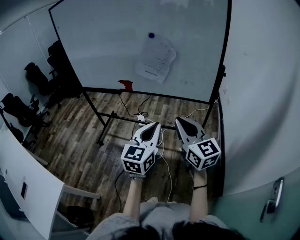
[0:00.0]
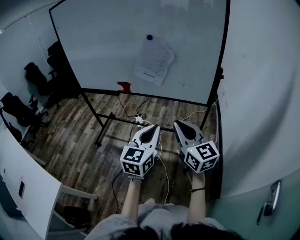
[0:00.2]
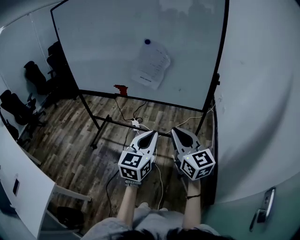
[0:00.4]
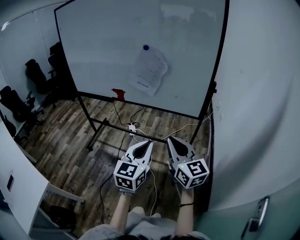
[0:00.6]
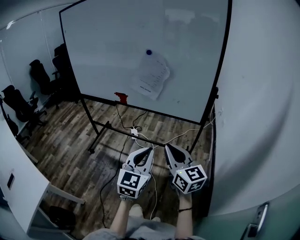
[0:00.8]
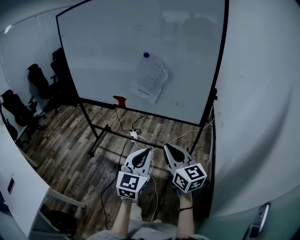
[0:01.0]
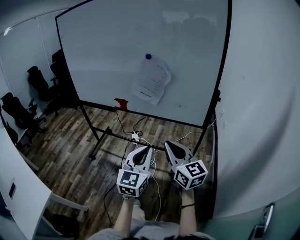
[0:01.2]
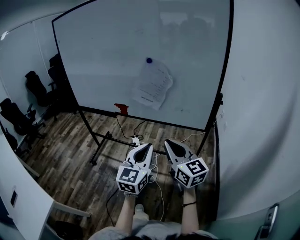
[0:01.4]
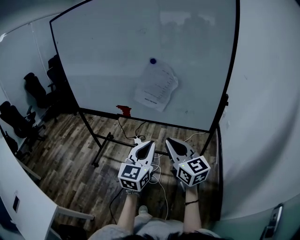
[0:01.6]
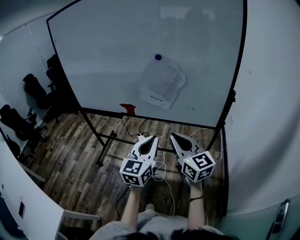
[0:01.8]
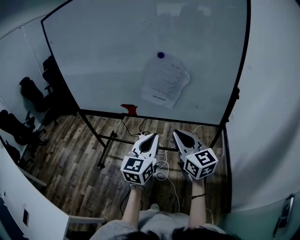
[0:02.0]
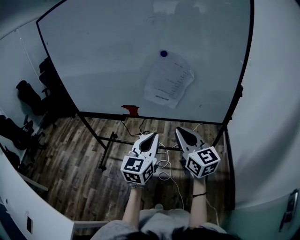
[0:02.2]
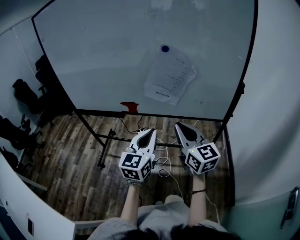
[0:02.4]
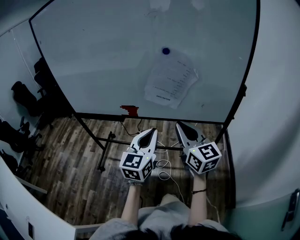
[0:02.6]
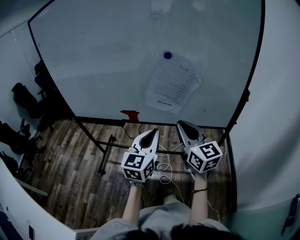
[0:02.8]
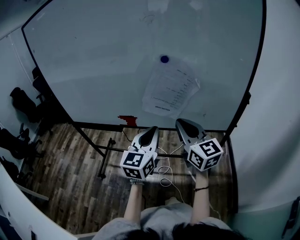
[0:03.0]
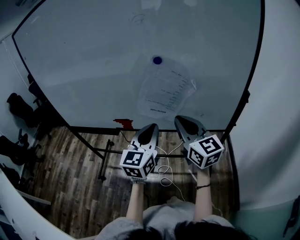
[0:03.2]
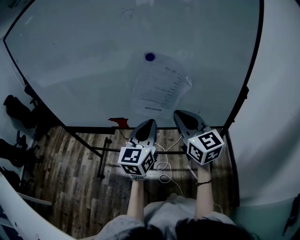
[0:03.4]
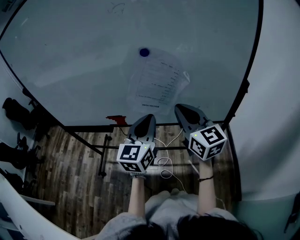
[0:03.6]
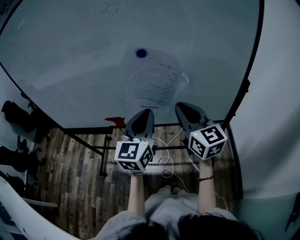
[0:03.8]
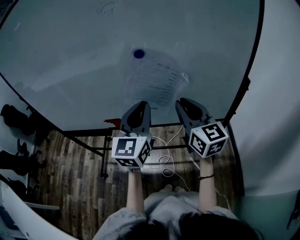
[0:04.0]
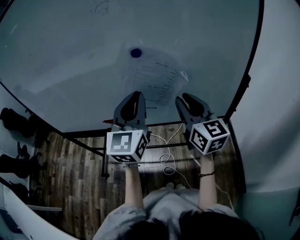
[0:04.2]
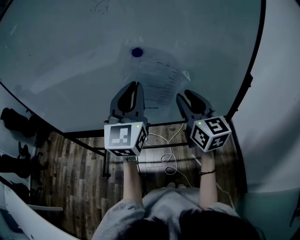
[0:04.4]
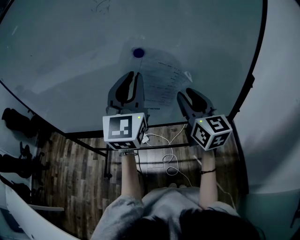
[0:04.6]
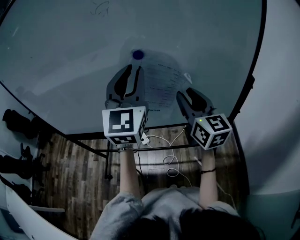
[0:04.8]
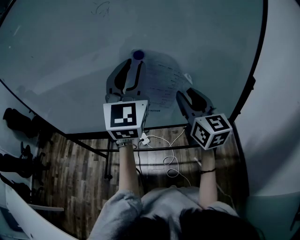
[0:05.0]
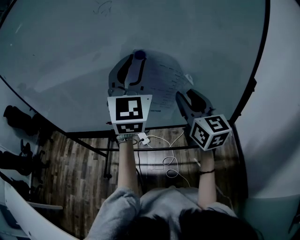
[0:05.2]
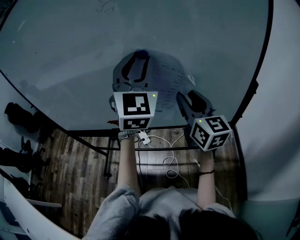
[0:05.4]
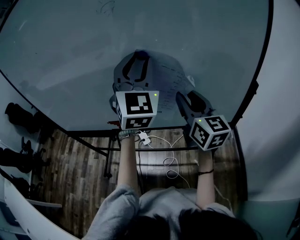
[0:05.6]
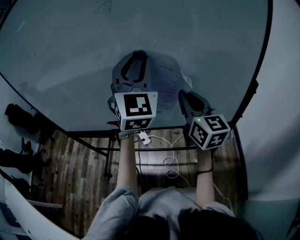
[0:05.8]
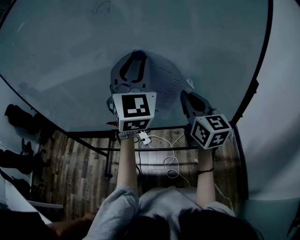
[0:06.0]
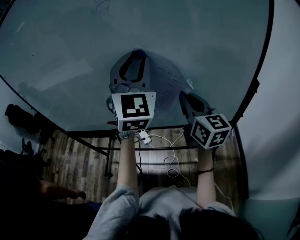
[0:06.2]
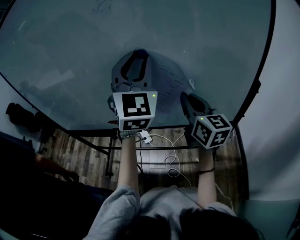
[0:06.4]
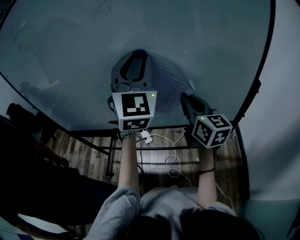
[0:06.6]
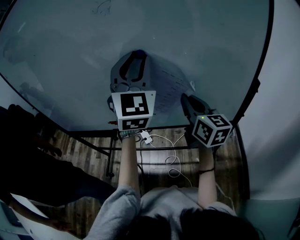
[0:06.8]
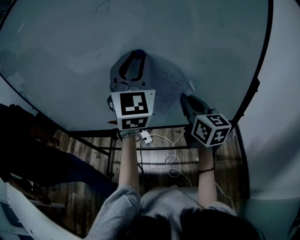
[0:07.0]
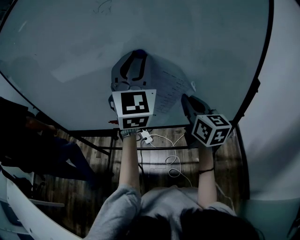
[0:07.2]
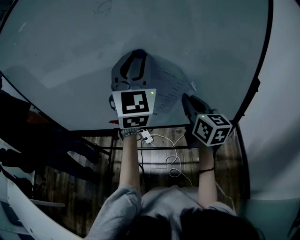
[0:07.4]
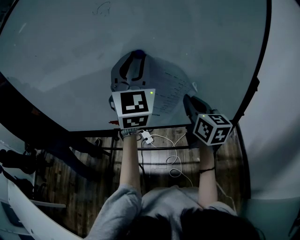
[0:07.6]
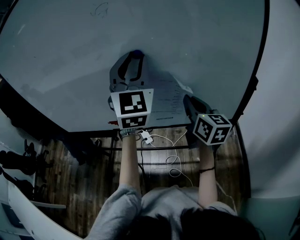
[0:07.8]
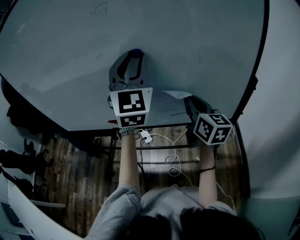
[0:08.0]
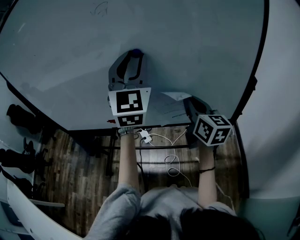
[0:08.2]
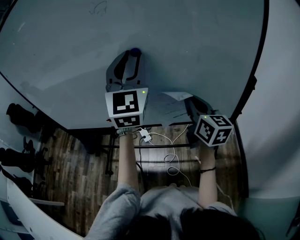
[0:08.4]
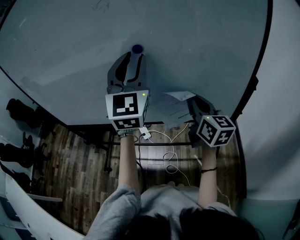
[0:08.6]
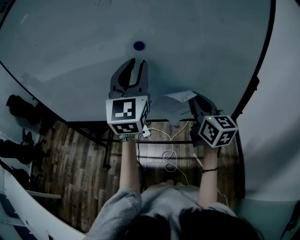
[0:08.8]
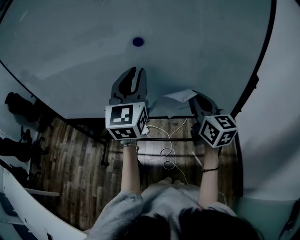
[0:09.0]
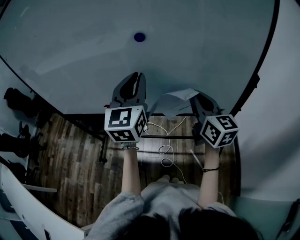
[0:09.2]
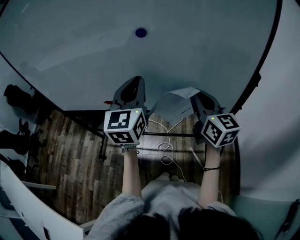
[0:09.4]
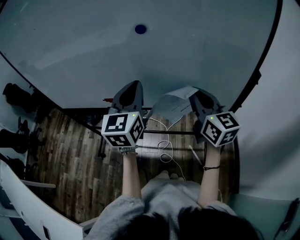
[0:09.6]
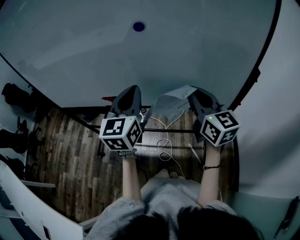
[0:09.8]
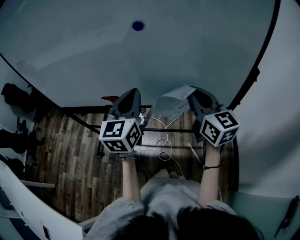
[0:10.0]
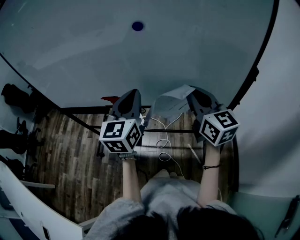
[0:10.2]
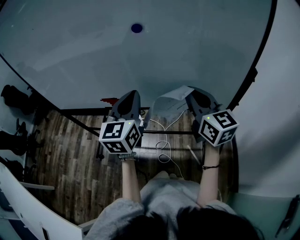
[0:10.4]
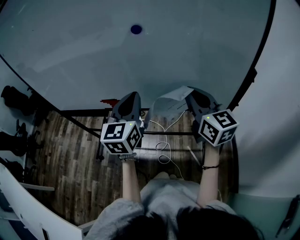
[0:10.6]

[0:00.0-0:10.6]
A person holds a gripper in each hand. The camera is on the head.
0:00.0 to 0:01.6: Both grippers travel together forward, roughly 10 cm.
0:01.6 to 0:03.0: The left gripper is displaced forward and to the left by about 20 cm. Meanwhile the right gripper moves forward, roughly 20 cm.
0:03.0 to 0:04.6: The left gripper moves forward and upward, roughly 20 cm, and turns by approximately 20 degrees, while the right gripper moves forward and to the right, roughly 15 cm, and opens up.
0:04.6 to 0:06.0: The left gripper moves roughly 5 cm, and changes its angle by some 20 degrees; the right gripper closes up.
0:06.0 to 0:07.6: The grippers make only small movements.
0:07.6 to 0:09.0: The left gripper shifts approximately 5 cm downward, and swivels approximately 20 degrees.
0:09.0 to 0:10.6: The left gripper is displaced downward by some 10 cm.

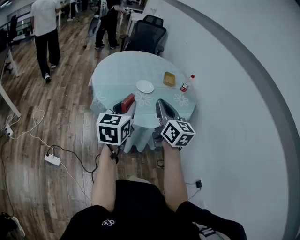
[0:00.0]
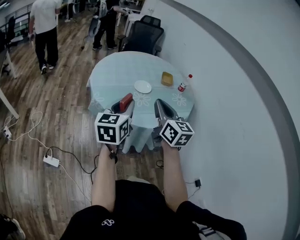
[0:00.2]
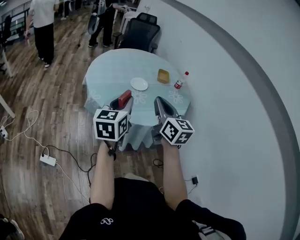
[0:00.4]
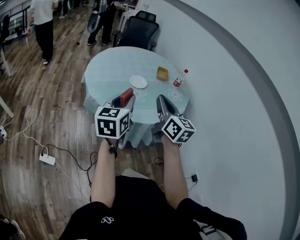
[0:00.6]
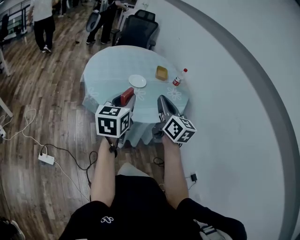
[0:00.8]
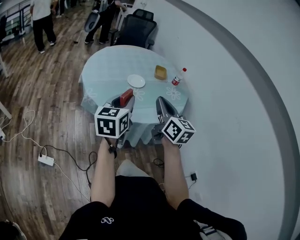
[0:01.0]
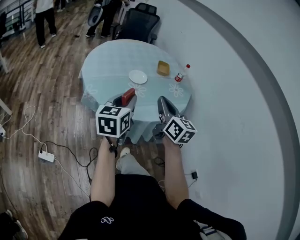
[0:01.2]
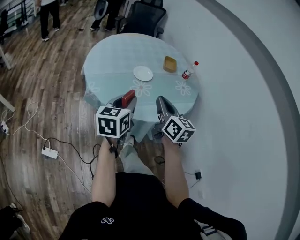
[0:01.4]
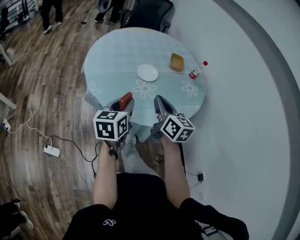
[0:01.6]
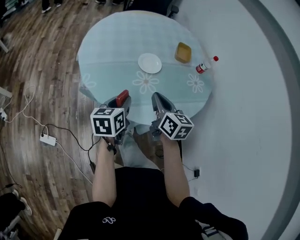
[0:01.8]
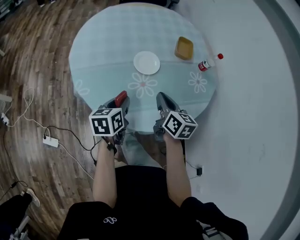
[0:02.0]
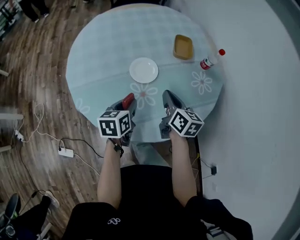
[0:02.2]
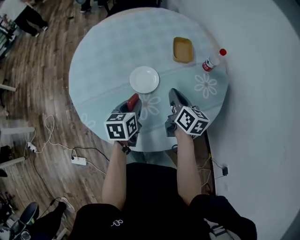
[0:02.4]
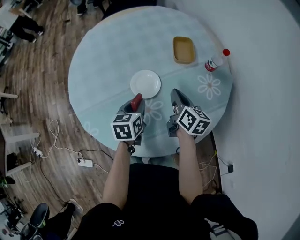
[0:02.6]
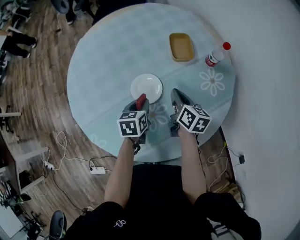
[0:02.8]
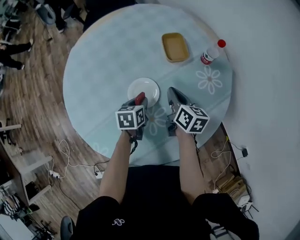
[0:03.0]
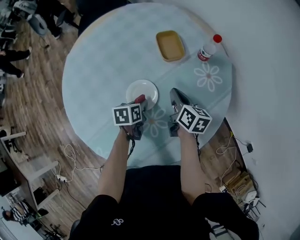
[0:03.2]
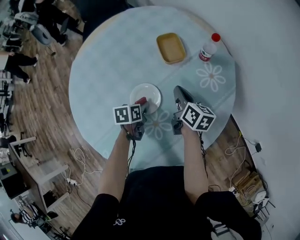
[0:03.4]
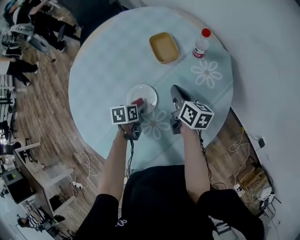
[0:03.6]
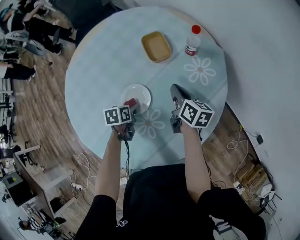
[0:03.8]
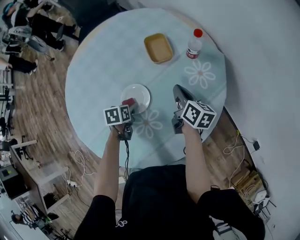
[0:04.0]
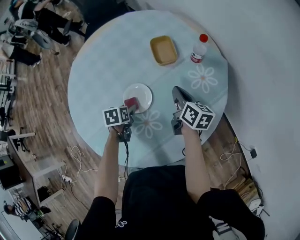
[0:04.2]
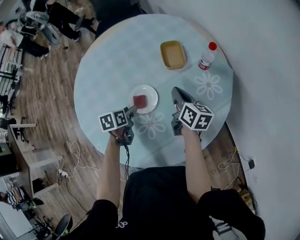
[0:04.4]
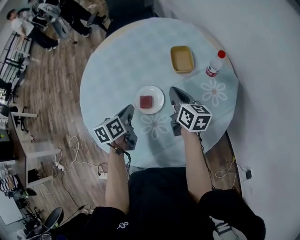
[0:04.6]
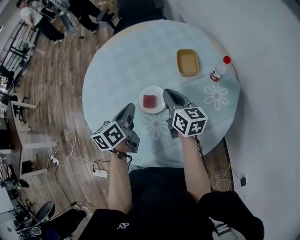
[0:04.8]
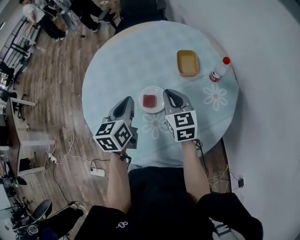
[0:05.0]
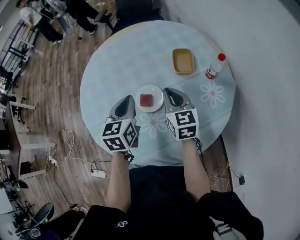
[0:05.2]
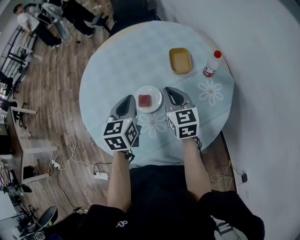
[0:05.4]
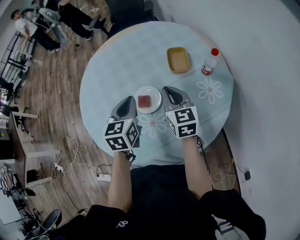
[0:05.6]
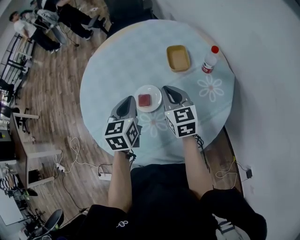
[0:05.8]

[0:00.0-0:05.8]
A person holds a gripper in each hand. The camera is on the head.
0:00.0 to 0:01.4: The right gripper shifts approximately 10 cm downward and forward; the left gripper heads forward and downward, covering roughly 10 cm.
0:01.4 to 0:02.8: Both grippers travel together forward and downward, roughly 40 cm. The right gripper changes its angle by some 30 degrees. The left gripper tips its fingers downward by roughly 30 degrees.
0:02.8 to 0:04.4: The left gripper opens.
0:04.4 to 0:05.8: The right gripper is displaced upward and to the left by approximately 10 cm, and swivels some 40 degrees; the left gripper shifts approximately 20 cm upward, swivels roughly 40 degrees, and closes up.

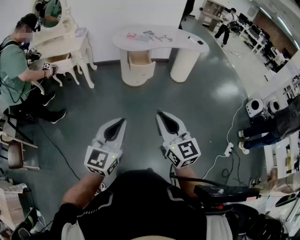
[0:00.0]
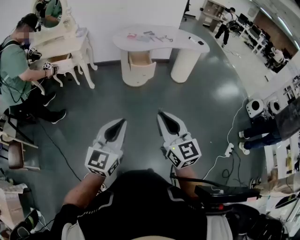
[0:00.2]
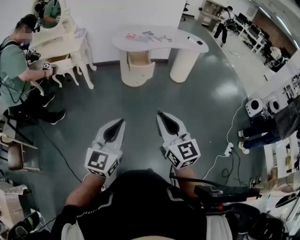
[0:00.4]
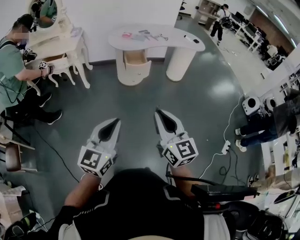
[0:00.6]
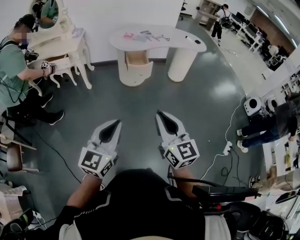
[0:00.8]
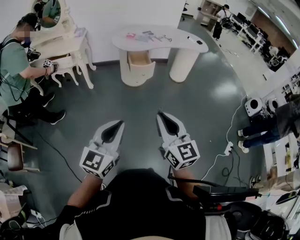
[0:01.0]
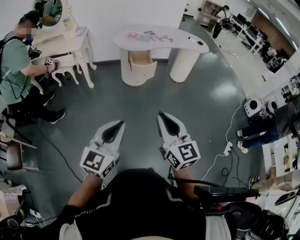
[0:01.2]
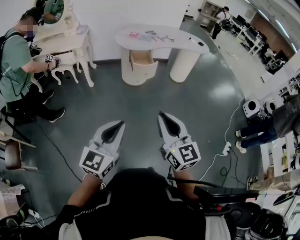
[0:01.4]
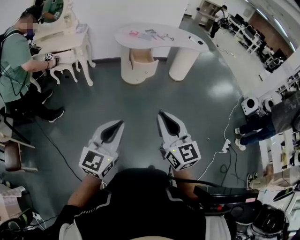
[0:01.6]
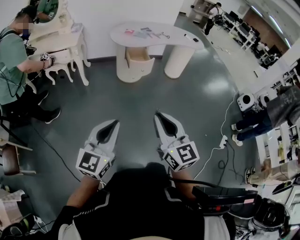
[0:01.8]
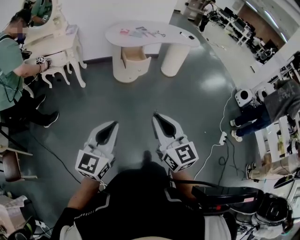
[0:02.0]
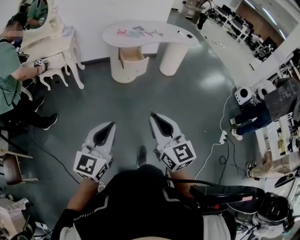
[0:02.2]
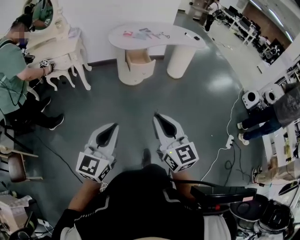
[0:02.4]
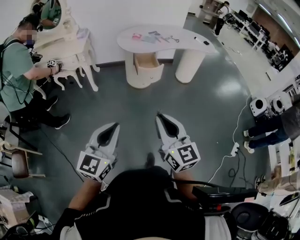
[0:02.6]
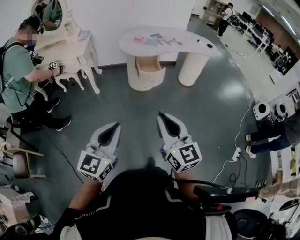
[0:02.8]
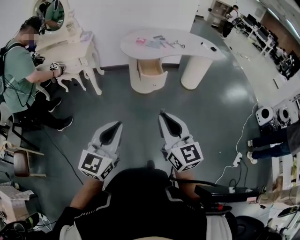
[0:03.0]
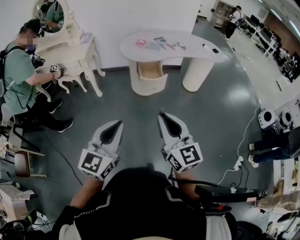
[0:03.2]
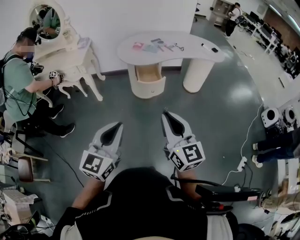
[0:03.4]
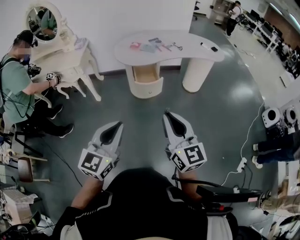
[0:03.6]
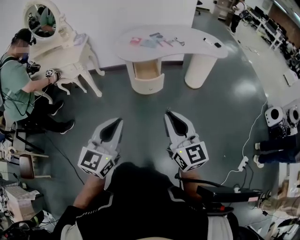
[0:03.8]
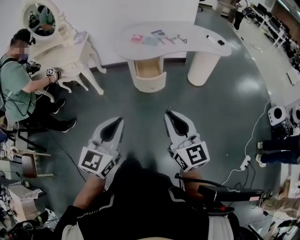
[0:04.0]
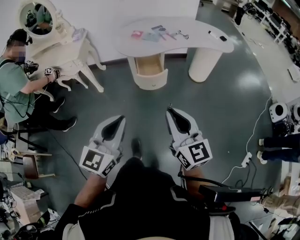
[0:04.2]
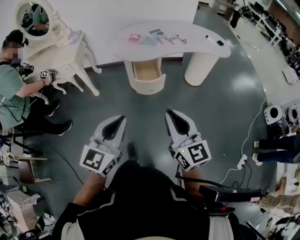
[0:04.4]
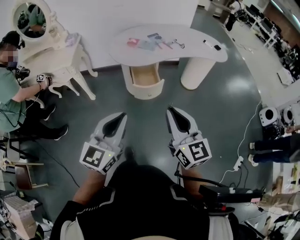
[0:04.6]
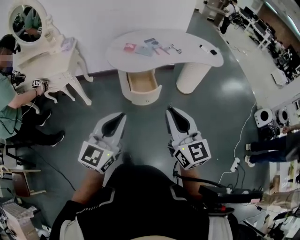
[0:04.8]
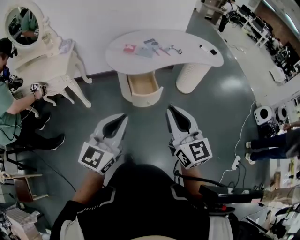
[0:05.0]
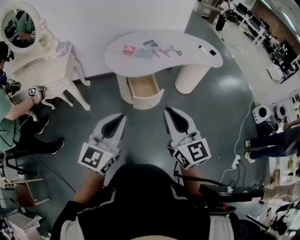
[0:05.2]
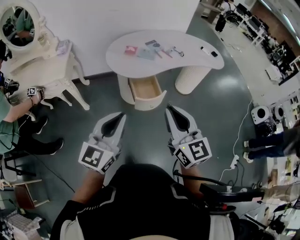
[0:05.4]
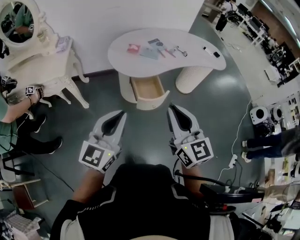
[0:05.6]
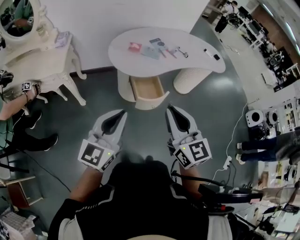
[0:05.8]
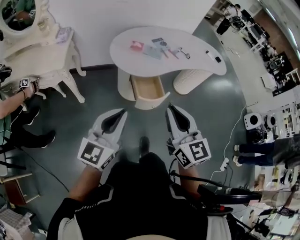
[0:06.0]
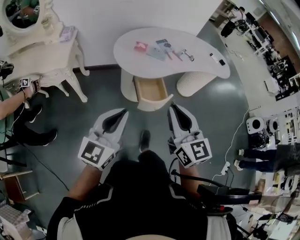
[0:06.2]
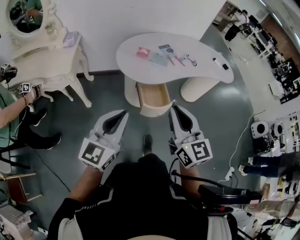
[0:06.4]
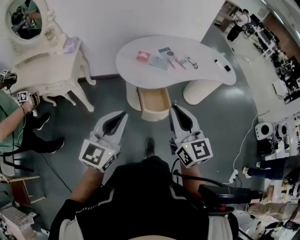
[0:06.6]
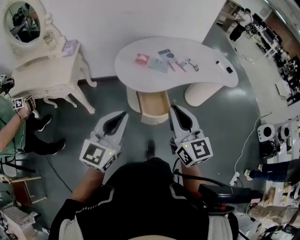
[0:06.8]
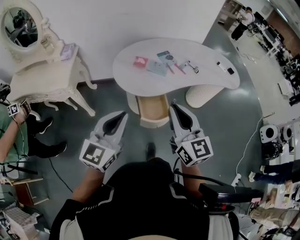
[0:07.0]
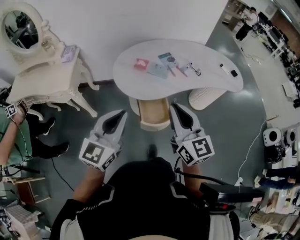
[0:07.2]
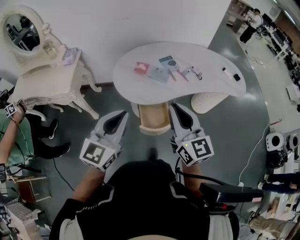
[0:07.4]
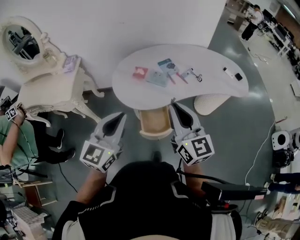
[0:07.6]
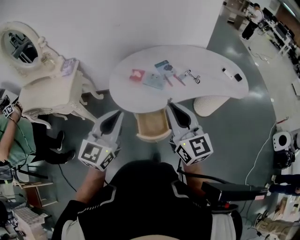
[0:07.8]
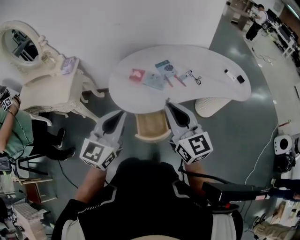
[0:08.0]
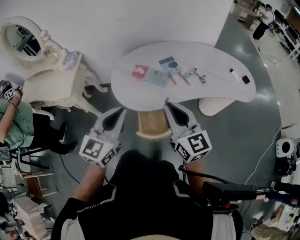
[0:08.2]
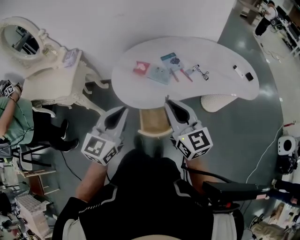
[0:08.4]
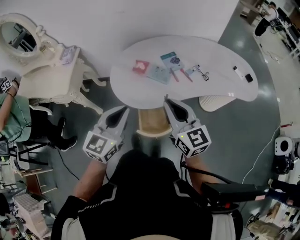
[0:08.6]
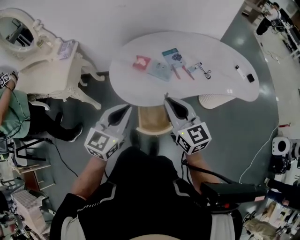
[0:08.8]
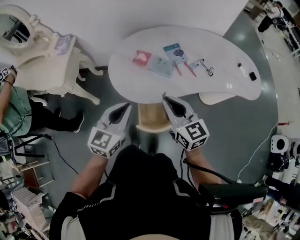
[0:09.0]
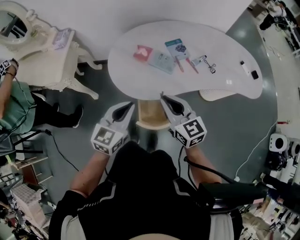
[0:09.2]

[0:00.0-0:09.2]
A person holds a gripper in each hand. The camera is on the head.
0:00.0 to 0:01.6: Both grippers travel together to the left, roughly 10 cm.
0:01.6 to 0:03.0: Both grippers travel together forward, approximately 15 cm.
0:03.0 to 0:04.6: Both grippers travel together forward, about 20 cm.
0:04.6 to 0:06.2: The two grippers go approximately 20 cm forward and to the left.
0:06.2 to 0:07.6: Both grippers move forward and to the right, about 25 cm.
0:07.6 to 0:09.2: Both grippers travel together downward and forward, some 20 cm. The right gripper swivels approximately 20 degrees.
